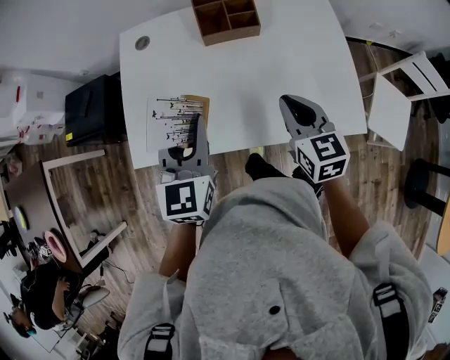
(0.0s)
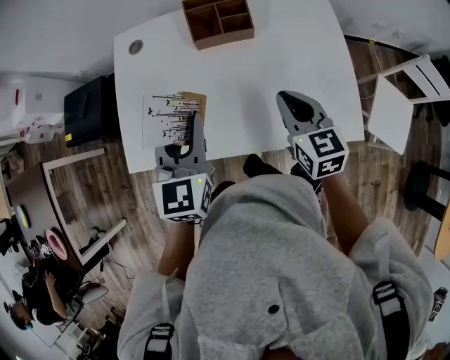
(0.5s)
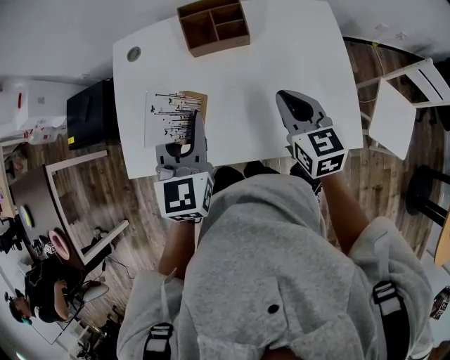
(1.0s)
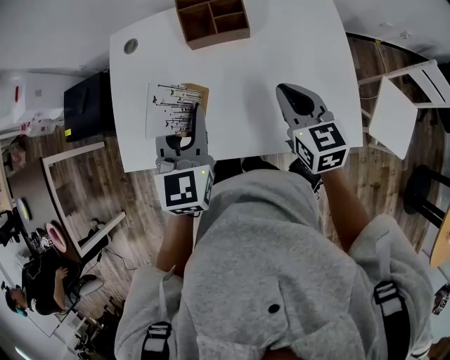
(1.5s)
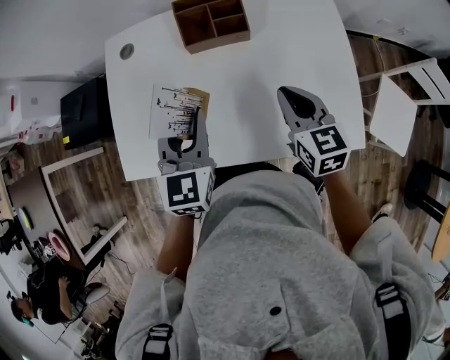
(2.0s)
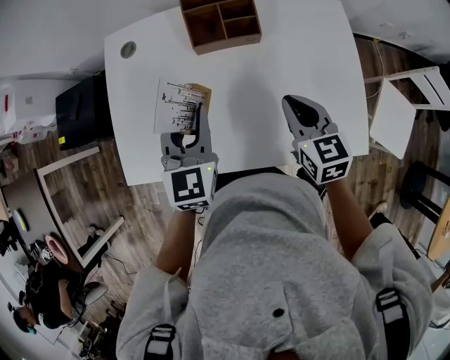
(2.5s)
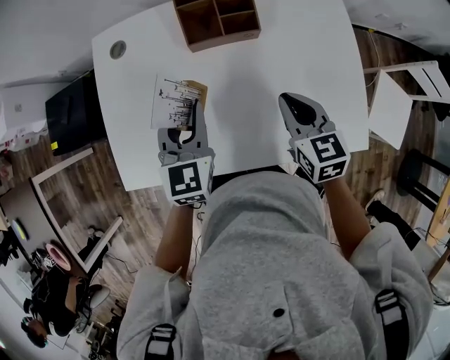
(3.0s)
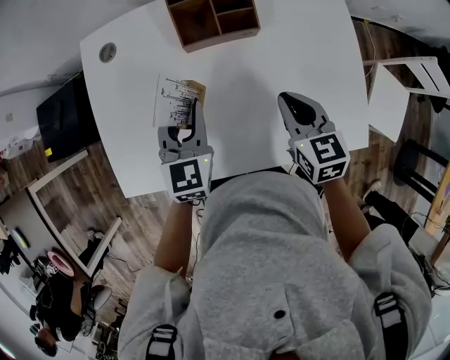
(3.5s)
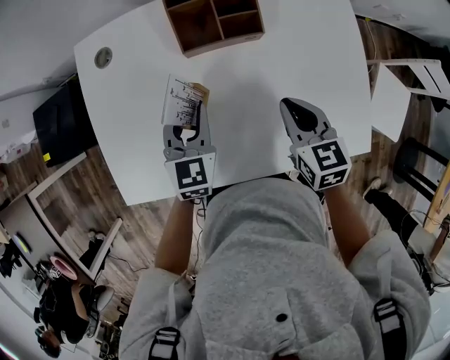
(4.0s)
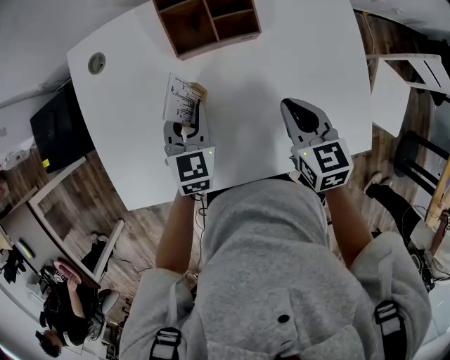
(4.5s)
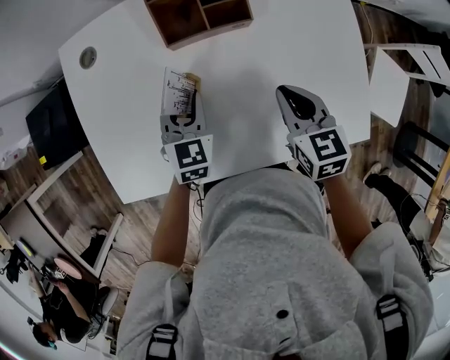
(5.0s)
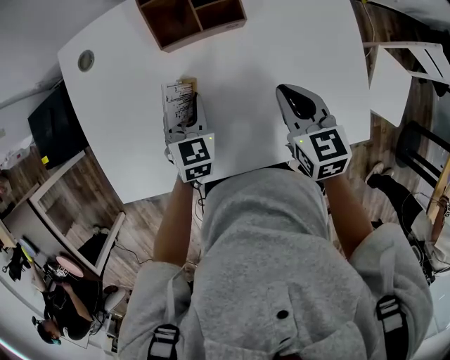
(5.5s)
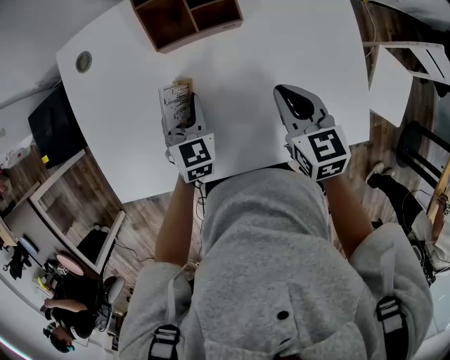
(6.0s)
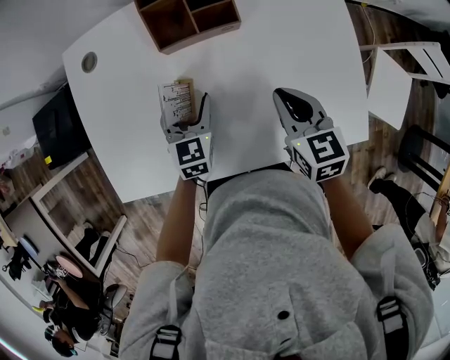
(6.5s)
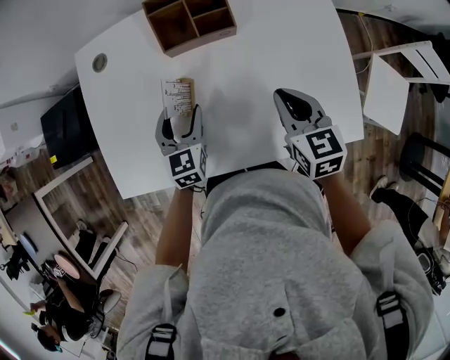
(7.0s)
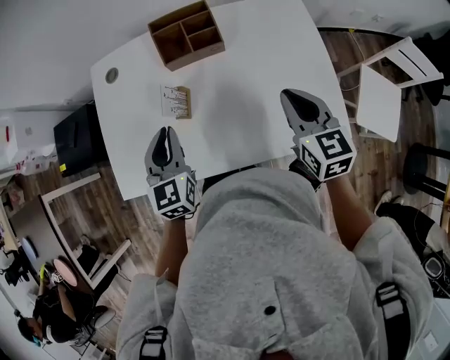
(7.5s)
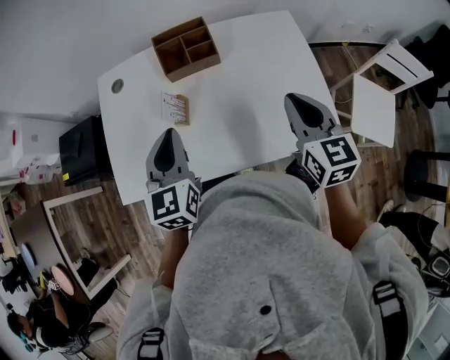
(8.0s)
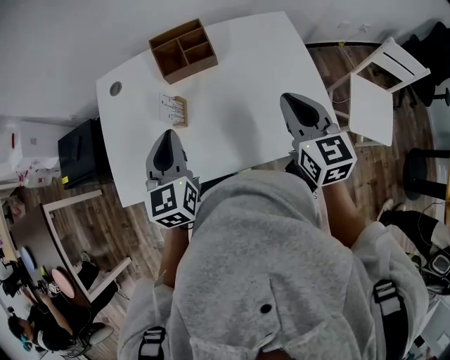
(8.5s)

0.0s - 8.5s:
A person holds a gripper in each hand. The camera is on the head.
0.0s - 2.0s: The two grippers go some 10 cm forward and to the right.
2.0s - 4.0s: The right gripper travels downward by approximately 5 cm, while the left gripper travels downward and forward by some 15 cm.
4.0s - 6.5s: The left gripper shifts about 5 cm downward, and opens.
6.5s - 8.5s: The right gripper goes approximately 20 cm upward, backward and to the right, and rotates some 20 degrees; the left gripper travels upward and backward by roughly 25 cm, and closes.

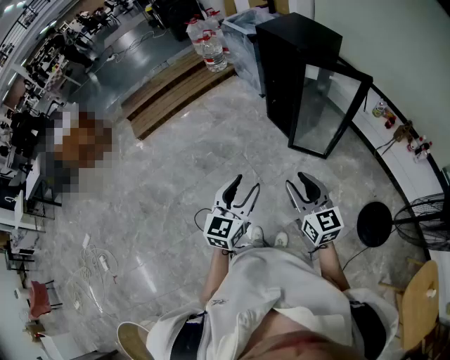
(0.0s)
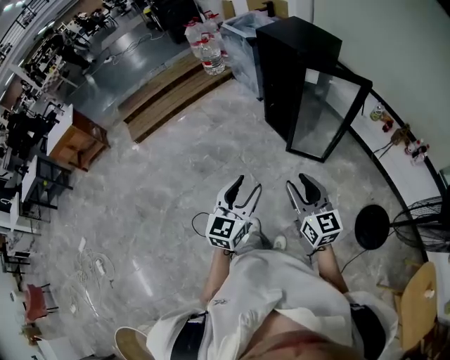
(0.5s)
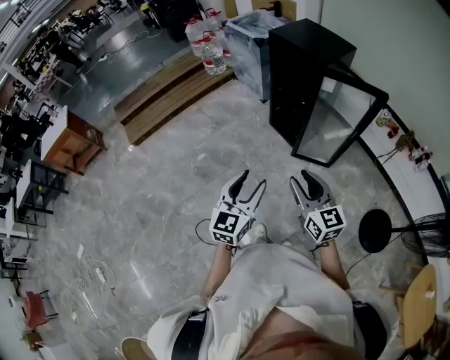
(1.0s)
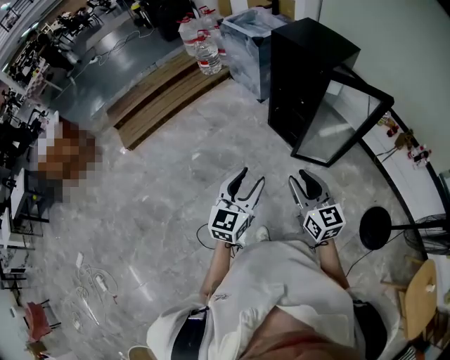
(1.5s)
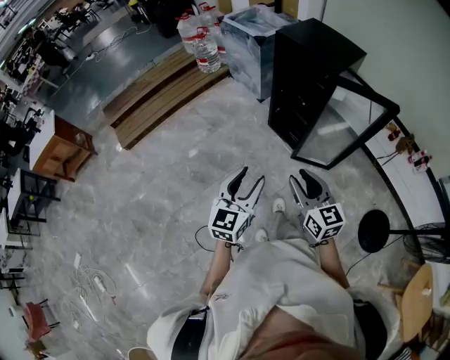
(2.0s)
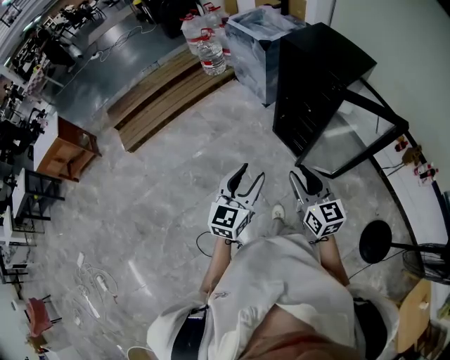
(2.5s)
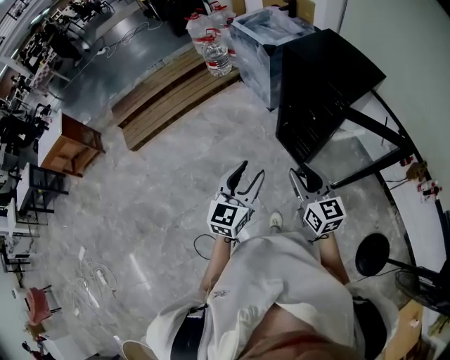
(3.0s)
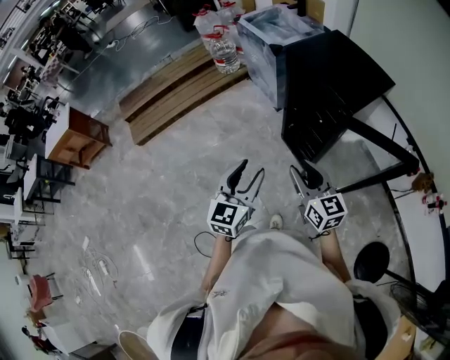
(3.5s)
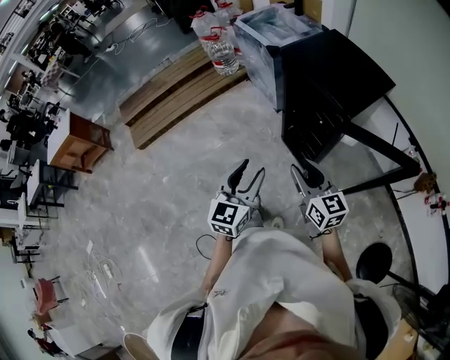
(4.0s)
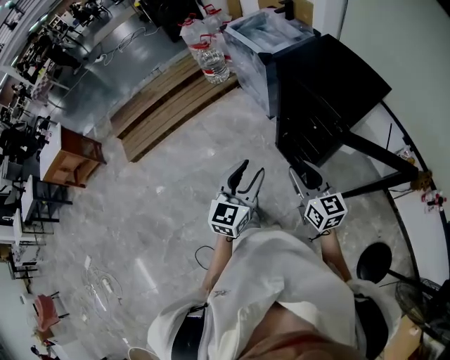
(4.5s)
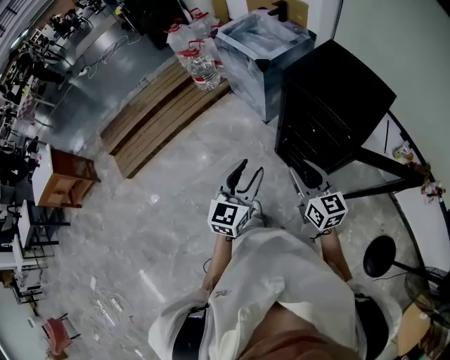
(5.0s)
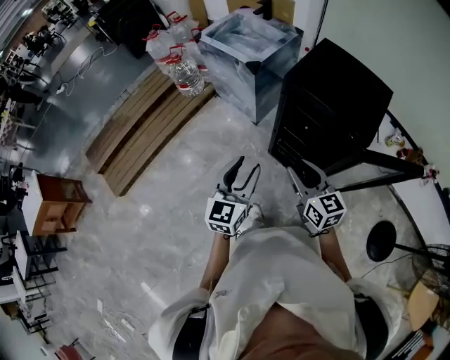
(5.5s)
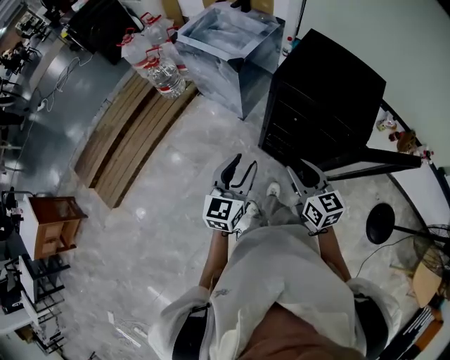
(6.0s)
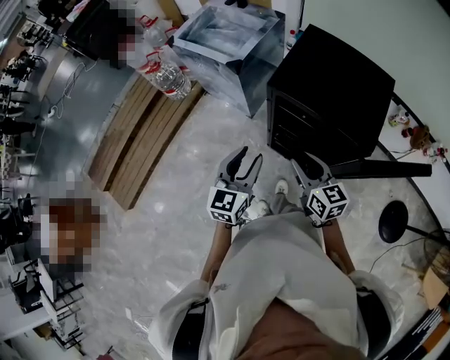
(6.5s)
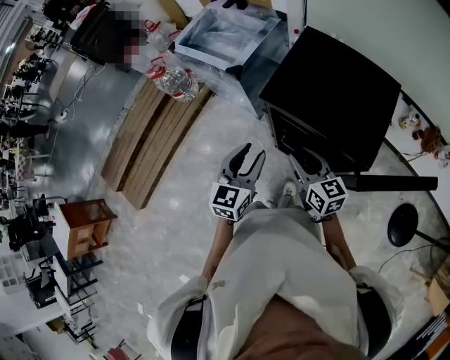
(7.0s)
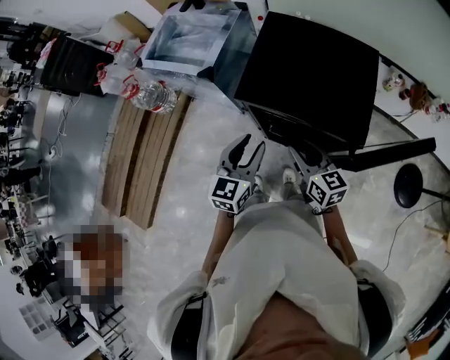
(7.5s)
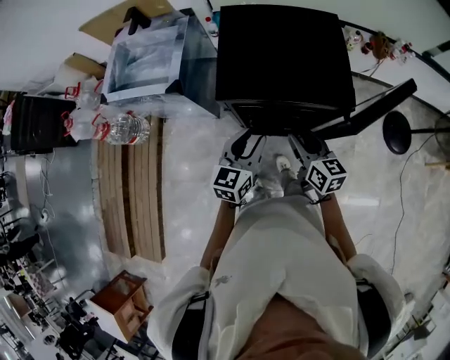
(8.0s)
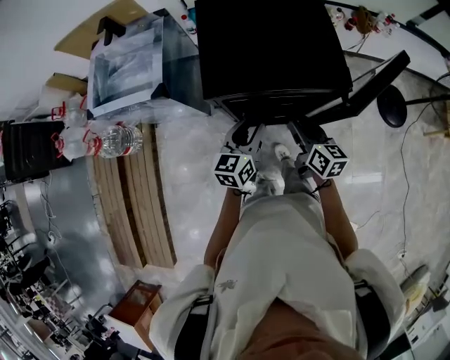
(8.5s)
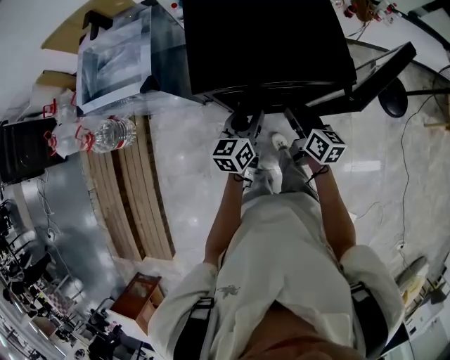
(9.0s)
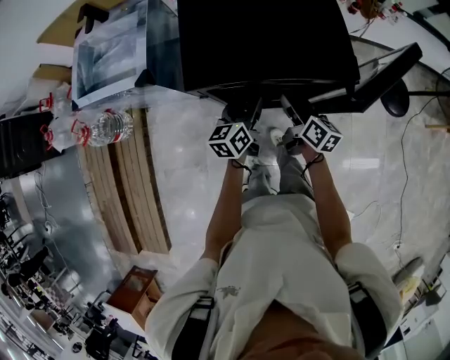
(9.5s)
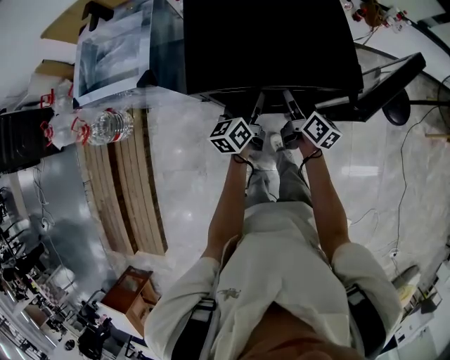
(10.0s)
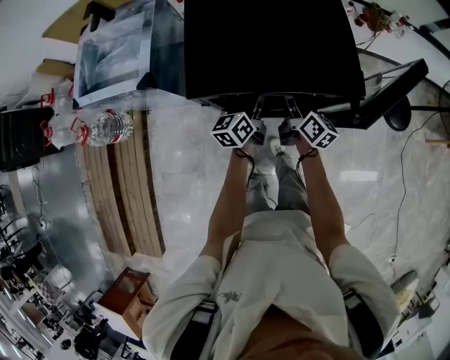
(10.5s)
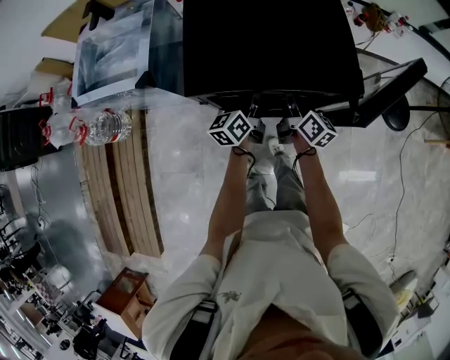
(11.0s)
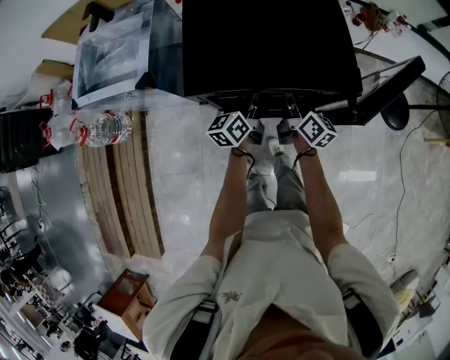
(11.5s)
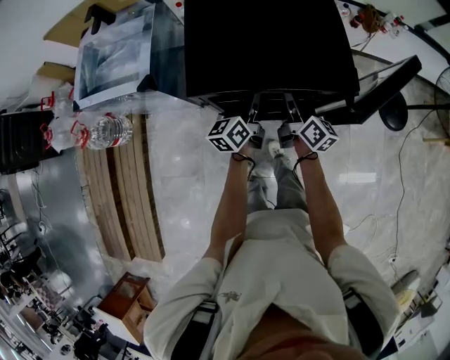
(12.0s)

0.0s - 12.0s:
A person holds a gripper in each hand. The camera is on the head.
0.0s - 2.0s: The two grippers go about 25 cm forward and to the left.
2.0s - 4.0s: The right gripper goes some 25 cm forward, while the left gripper is displaced forward and to the right by approximately 25 cm.
4.0s - 6.0s: The grippers both shift forward and to the left by about 25 cm. The left gripper swivels some 20 degrees. The right gripper rotates about 20 degrees.
6.0s - 8.0s: The left gripper shifts by about 20 cm, and changes its angle by roughly 40 degrees. Meanwhile the right gripper shifts by about 15 cm, and swivels some 40 degrees.
8.0s - 10.0s: Both grippers move downward and forward, approximately 15 cm. The left gripper swivels about 30 degrees, and opens its fingers. The right gripper swivels some 30 degrees, and opens.
10.0s - 12.0s: The left gripper closes up; the right gripper closes its fingers.

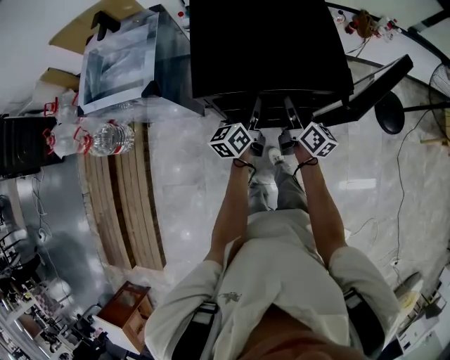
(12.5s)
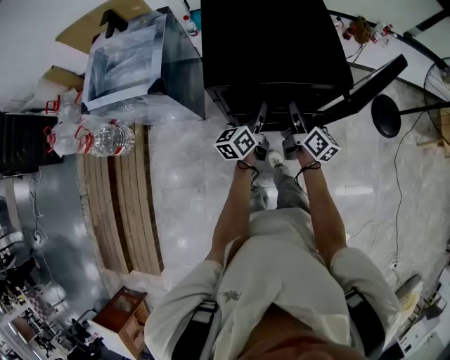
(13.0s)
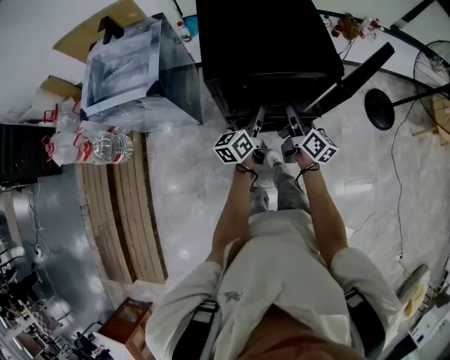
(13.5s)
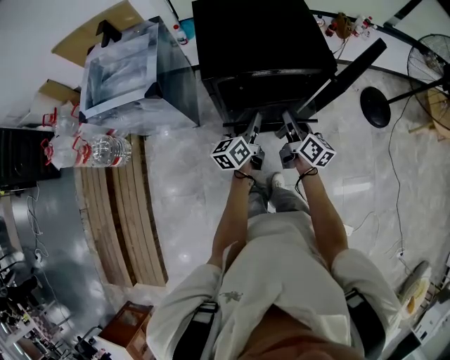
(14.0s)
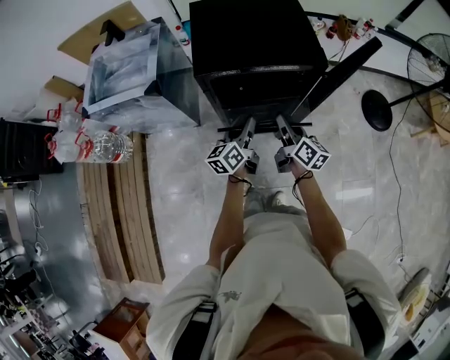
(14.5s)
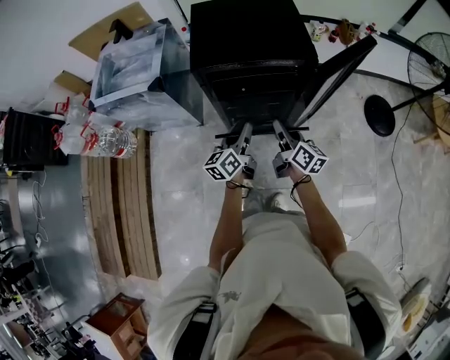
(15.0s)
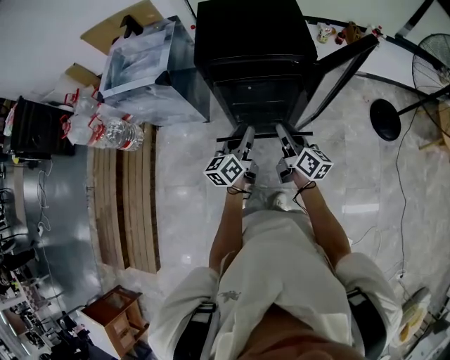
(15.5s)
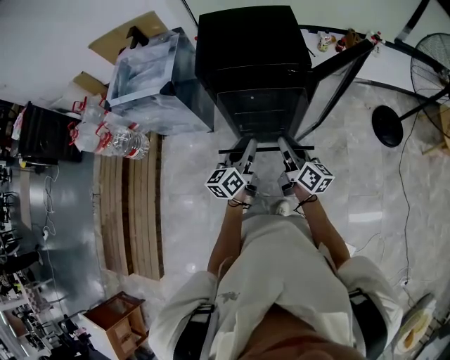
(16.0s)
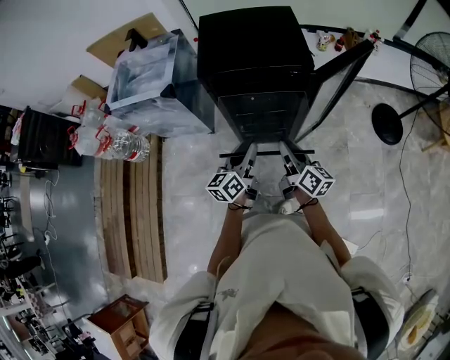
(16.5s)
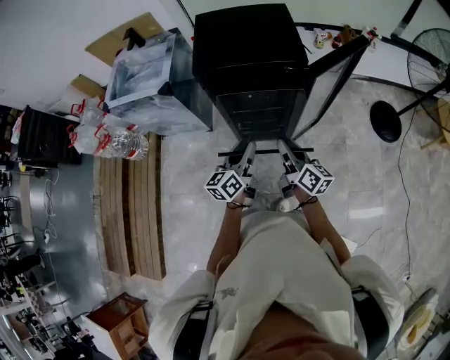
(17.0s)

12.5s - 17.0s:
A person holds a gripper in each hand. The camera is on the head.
12.5s - 14.5s: Both grippers move backward, about 15 cm.
14.5s - 17.0s: The left gripper moves backward and upward, about 15 cm; the right gripper travels backward by roughly 15 cm.

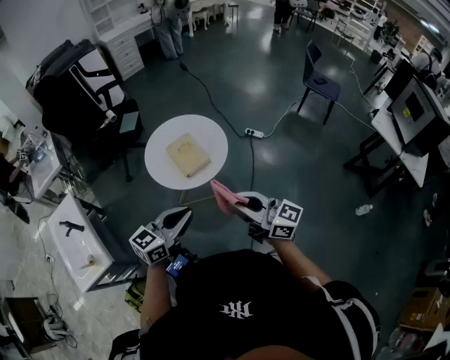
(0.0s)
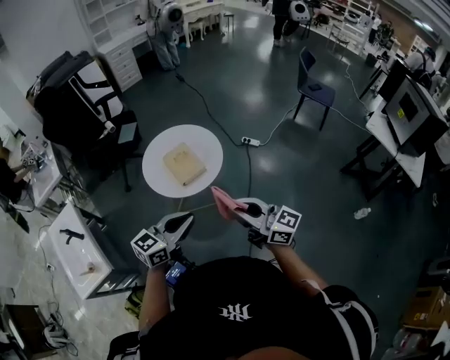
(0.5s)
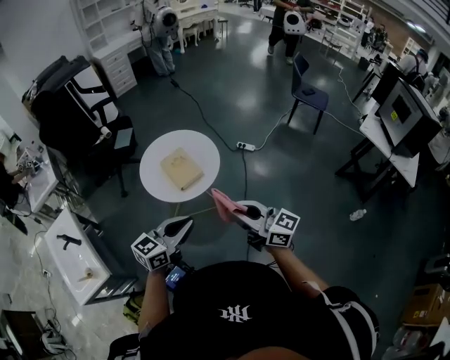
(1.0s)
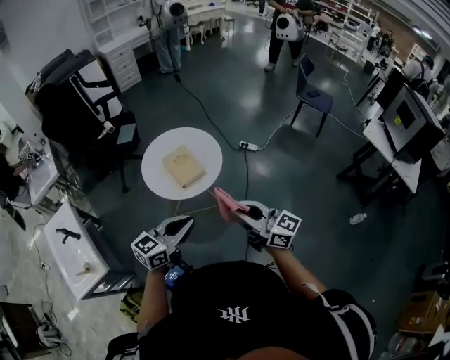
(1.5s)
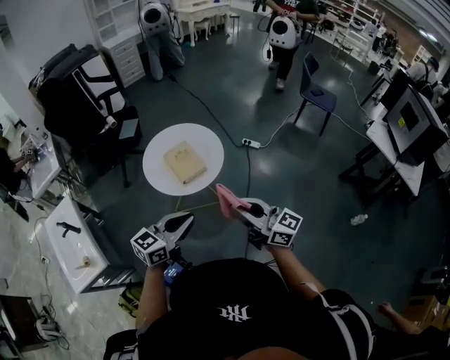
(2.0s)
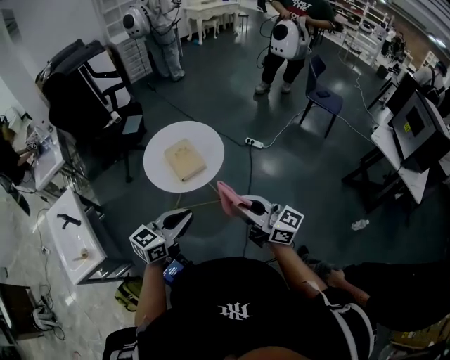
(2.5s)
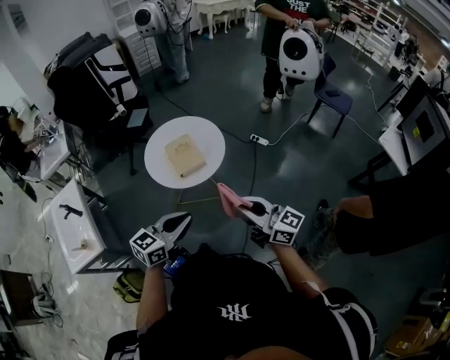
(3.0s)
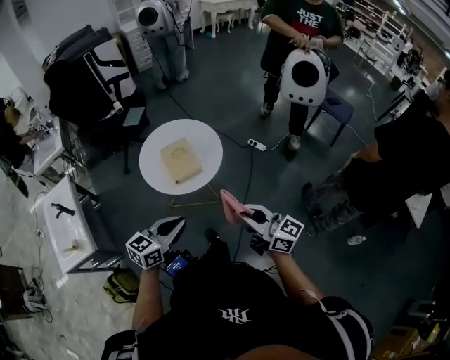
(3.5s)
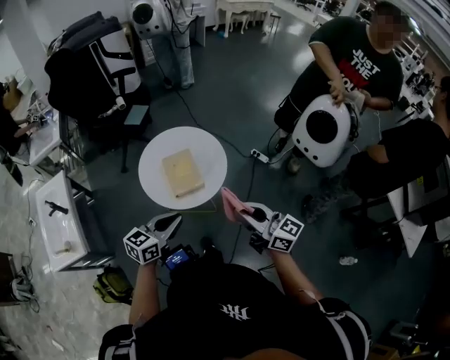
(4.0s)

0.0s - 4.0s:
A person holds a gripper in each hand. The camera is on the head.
0.0s - 2.0s: The grippers move only a little.
2.0s - 4.0s: The right gripper heads forward and to the right, covering some 20 cm; the left gripper goes some 15 cm forward.
